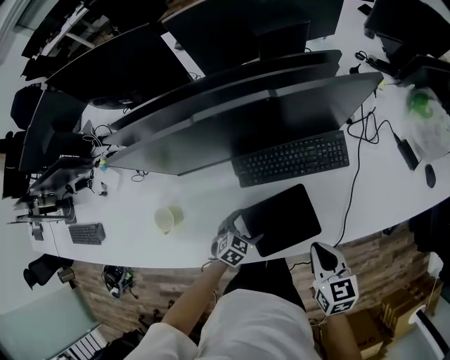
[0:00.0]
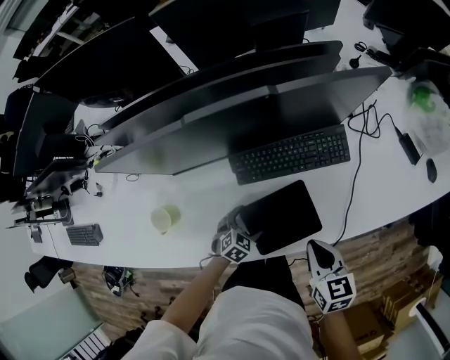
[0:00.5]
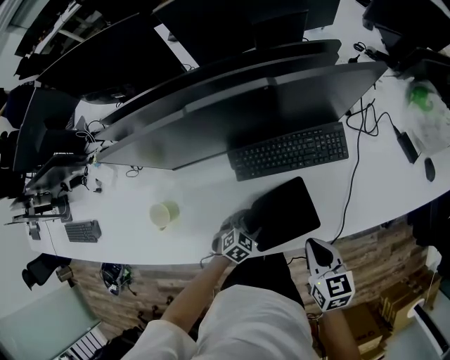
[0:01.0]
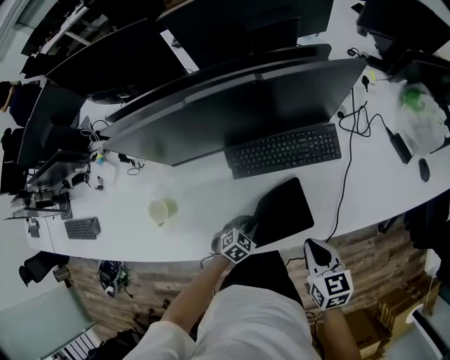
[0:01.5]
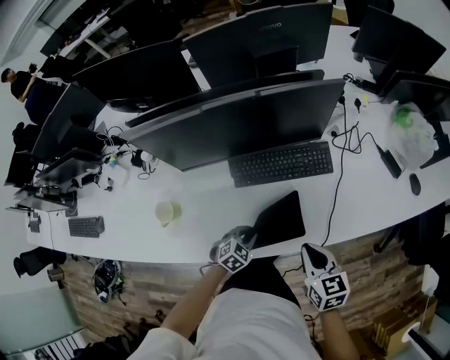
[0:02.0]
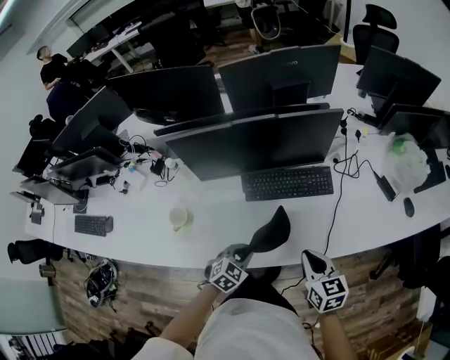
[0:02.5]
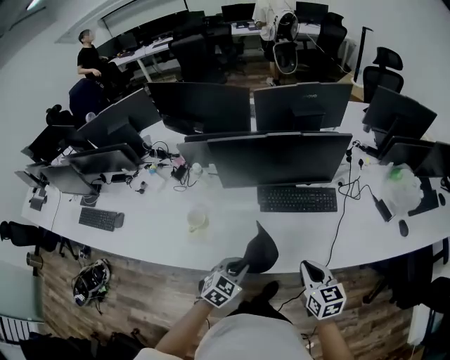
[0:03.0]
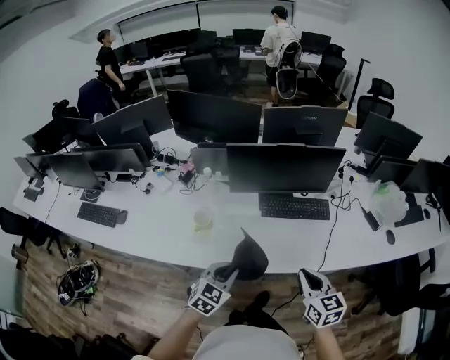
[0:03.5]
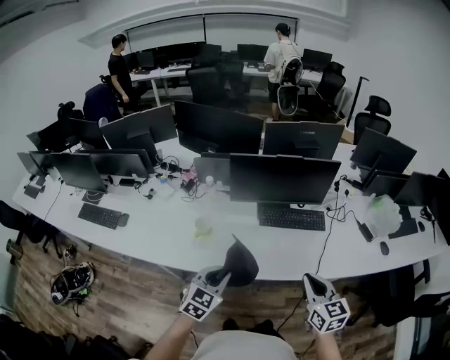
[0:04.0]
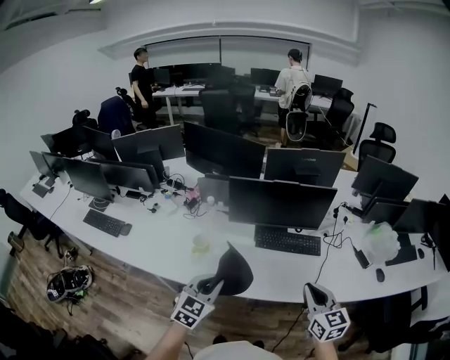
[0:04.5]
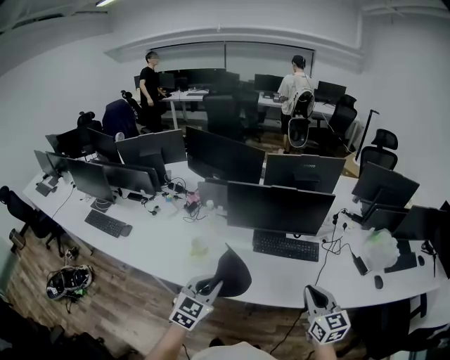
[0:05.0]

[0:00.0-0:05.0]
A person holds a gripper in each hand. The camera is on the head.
0:00.0 to 0:02.5: The right gripper moves upward, roughly 5 cm; the left gripper is displaced upward and backward by roughly 15 cm, and closes.
0:02.5 to 0:05.0: The left gripper travels upward, backward and to the left by roughly 35 cm, and tilts its fingers about 30 degrees upward. Meanwhile the right gripper shifts roughly 25 cm upward and backward, and rotates some 30 degrees.

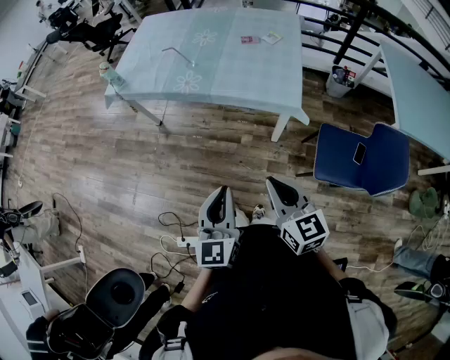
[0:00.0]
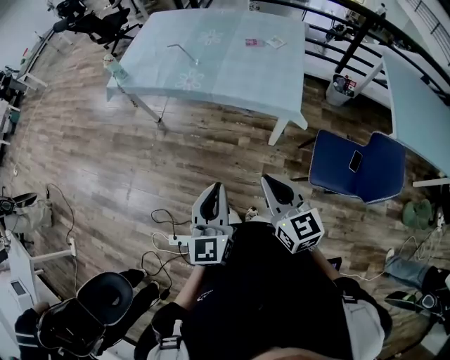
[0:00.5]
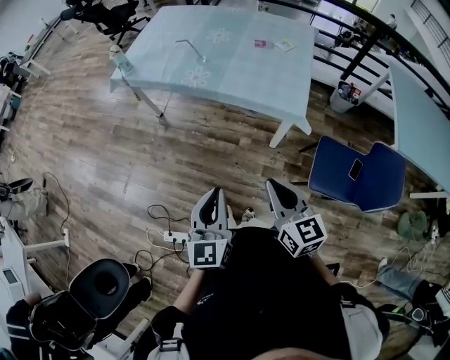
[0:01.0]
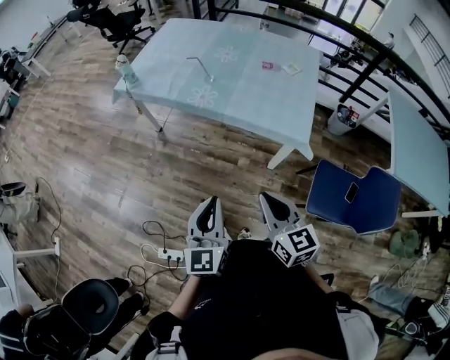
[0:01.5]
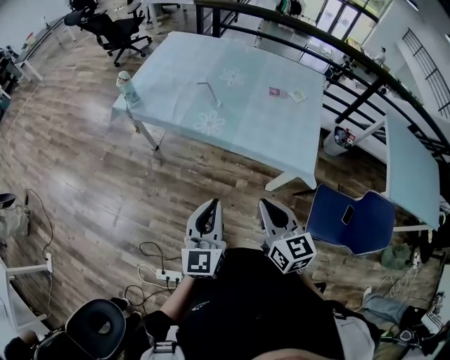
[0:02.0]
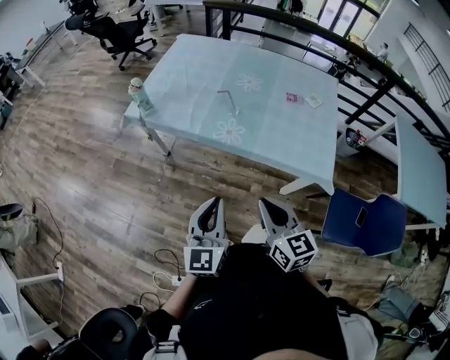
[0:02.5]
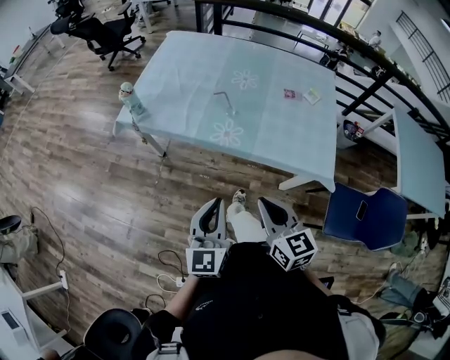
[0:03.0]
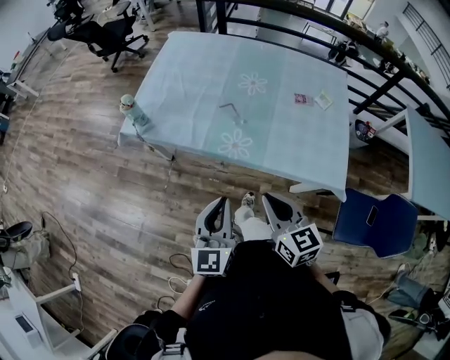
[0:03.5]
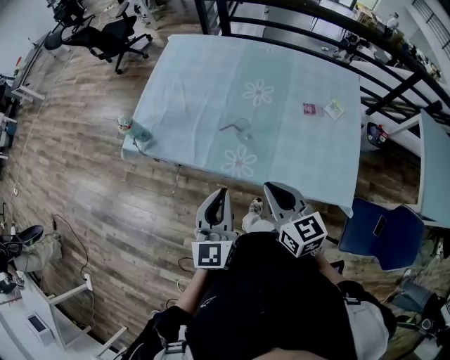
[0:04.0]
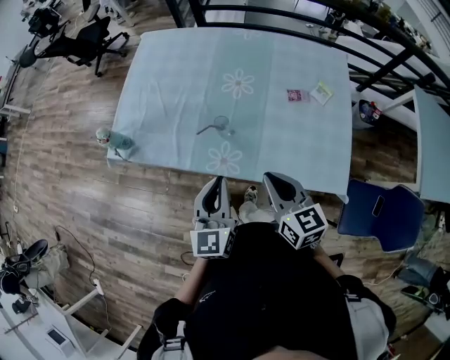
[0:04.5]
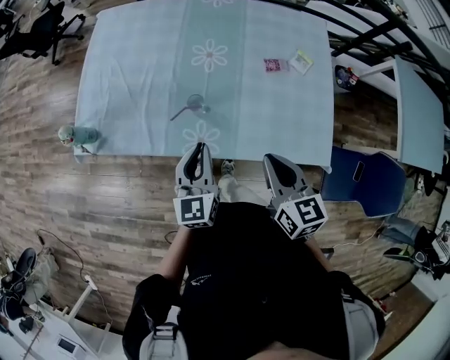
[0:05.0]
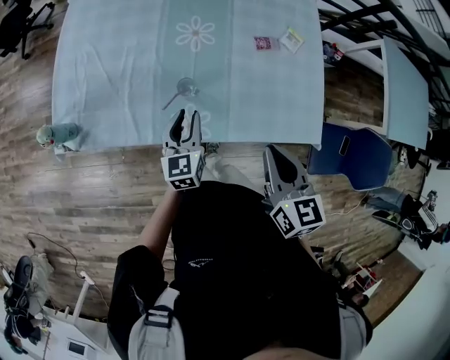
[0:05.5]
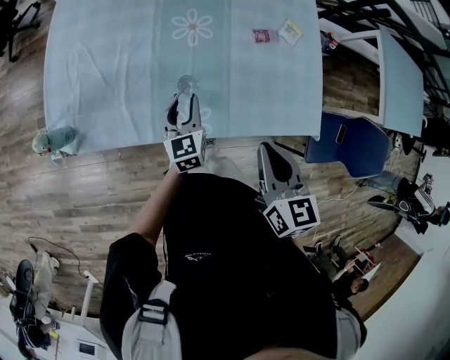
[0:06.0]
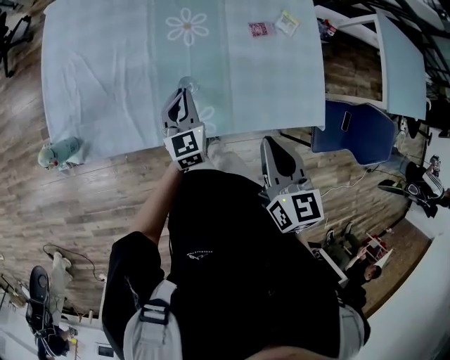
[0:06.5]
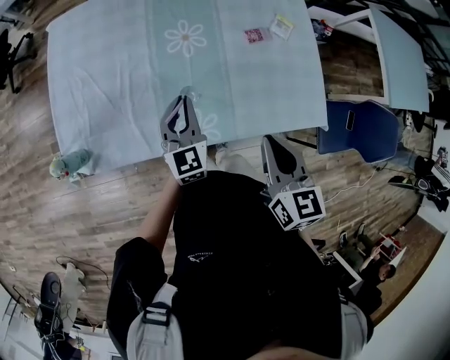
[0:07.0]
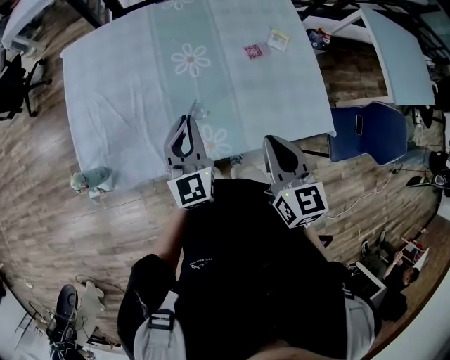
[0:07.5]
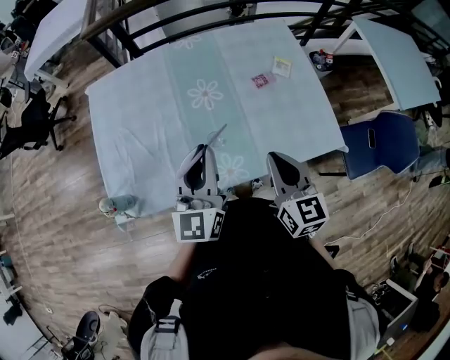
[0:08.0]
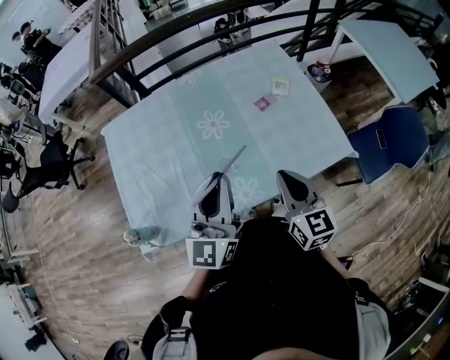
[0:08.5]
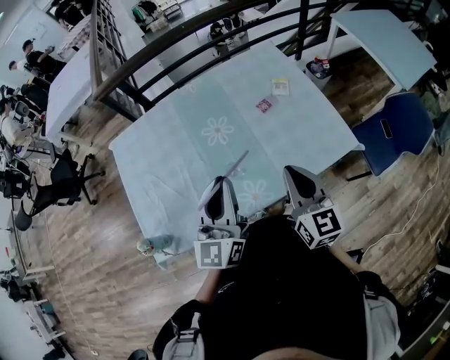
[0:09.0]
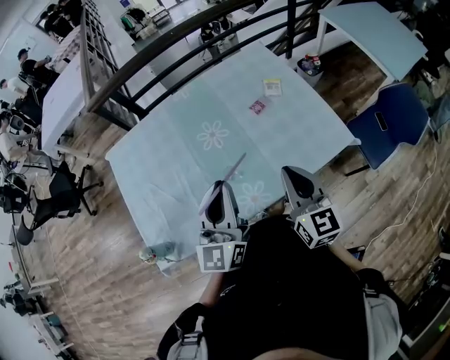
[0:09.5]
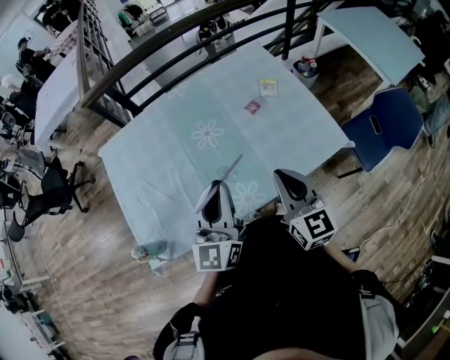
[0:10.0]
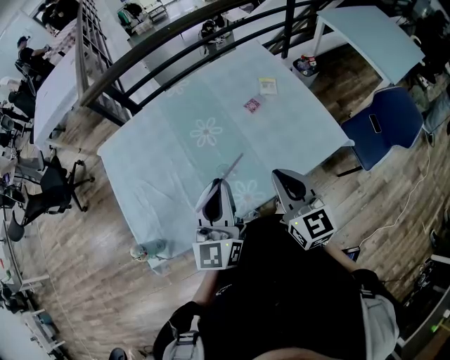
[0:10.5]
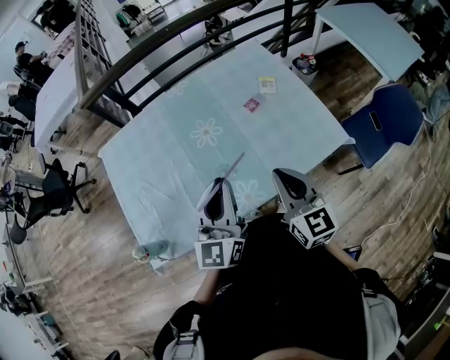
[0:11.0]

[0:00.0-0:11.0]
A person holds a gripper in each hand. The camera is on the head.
0:00.0 to 0:02.0: The two grippers go roughly 20 cm forward and to the left.
0:02.0 to 0:03.5: The left gripper shifts roughly 20 cm forward. The right gripper moves forward and to the left, about 20 cm.
0:03.5 to 0:05.5: The left gripper travels forward and downward by roughly 35 cm, changes its angle by about 20 degrees, and opens its fingers; the right gripper heads forward and to the right, covering about 20 cm, and swivels approximately 30 degrees.
0:05.5 to 0:07.5: The left gripper heads upward, covering about 15 cm, and turns by about 20 degrees; the right gripper moves some 5 cm.
0:07.5 to 0:09.0: The left gripper shifts approximately 10 cm upward, and changes its angle by about 30 degrees.
0:09.0 to 0:11.0: The grippers stay close to where they were, moving slightly.

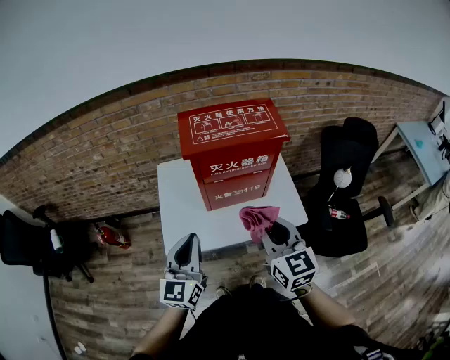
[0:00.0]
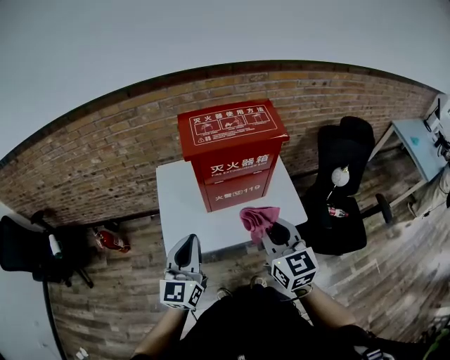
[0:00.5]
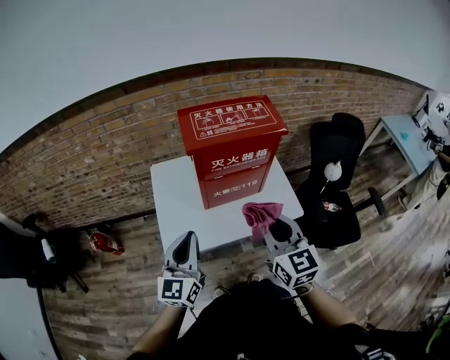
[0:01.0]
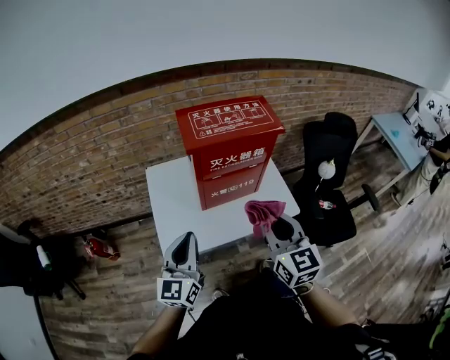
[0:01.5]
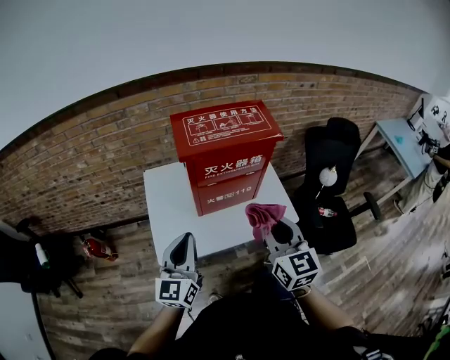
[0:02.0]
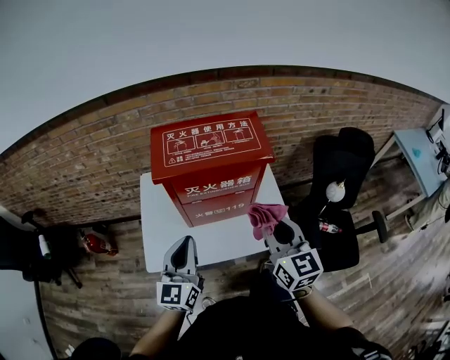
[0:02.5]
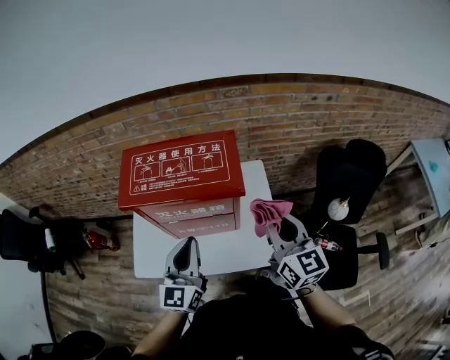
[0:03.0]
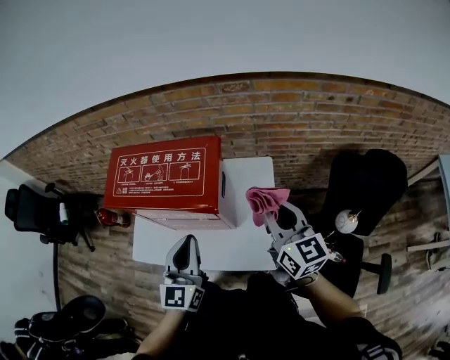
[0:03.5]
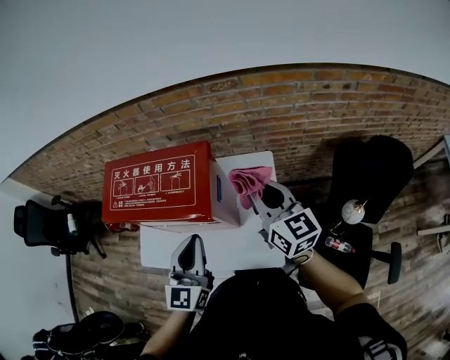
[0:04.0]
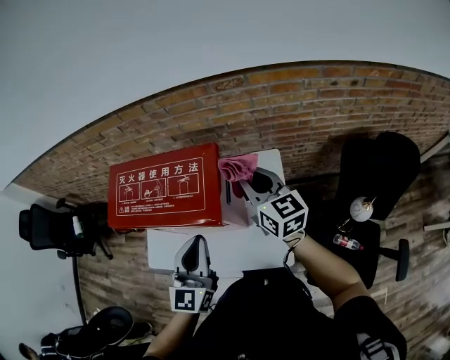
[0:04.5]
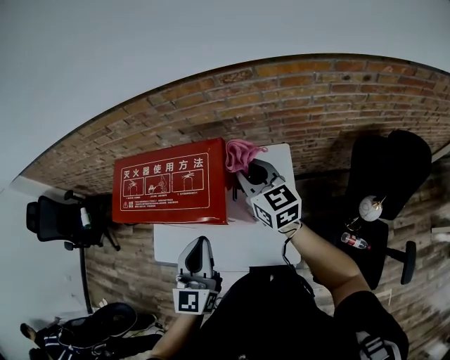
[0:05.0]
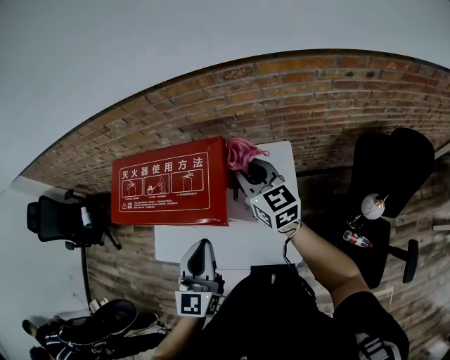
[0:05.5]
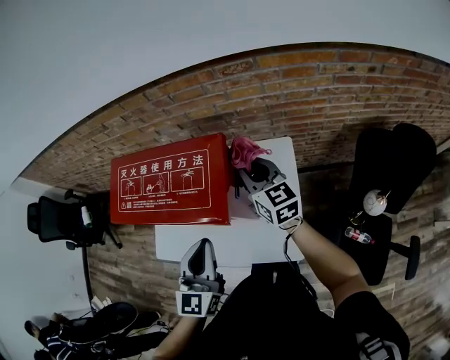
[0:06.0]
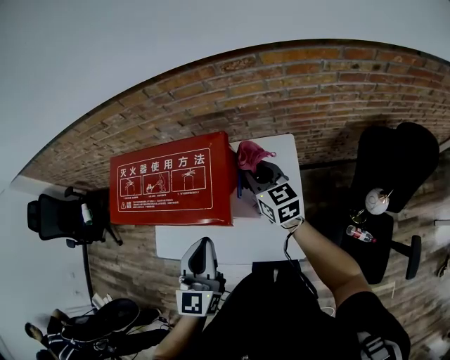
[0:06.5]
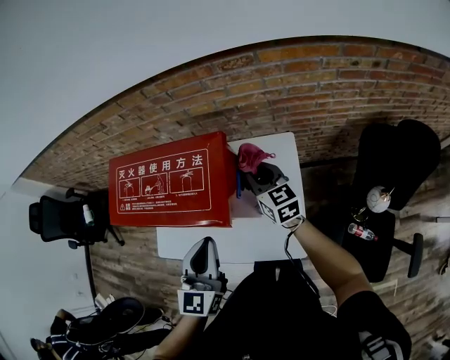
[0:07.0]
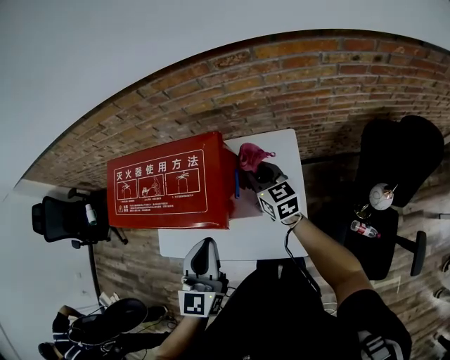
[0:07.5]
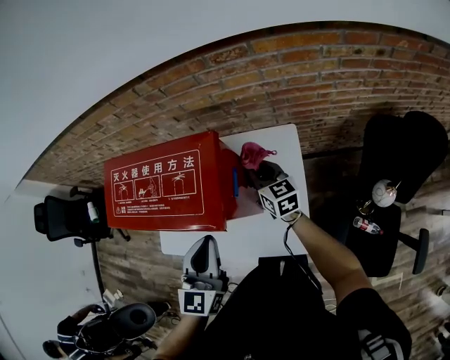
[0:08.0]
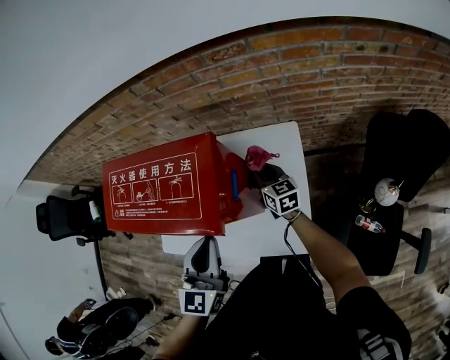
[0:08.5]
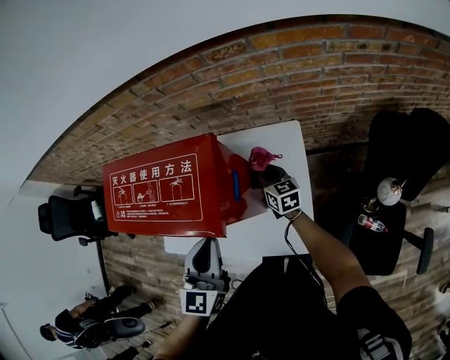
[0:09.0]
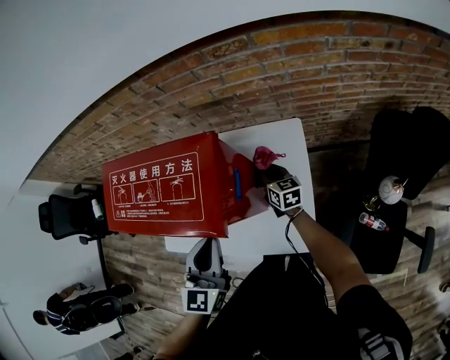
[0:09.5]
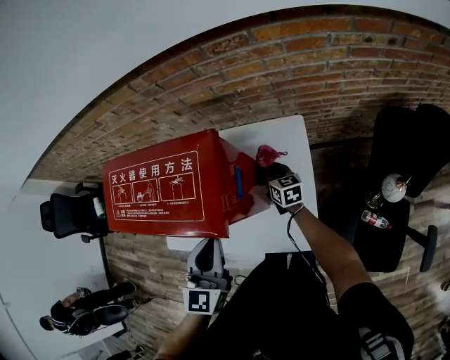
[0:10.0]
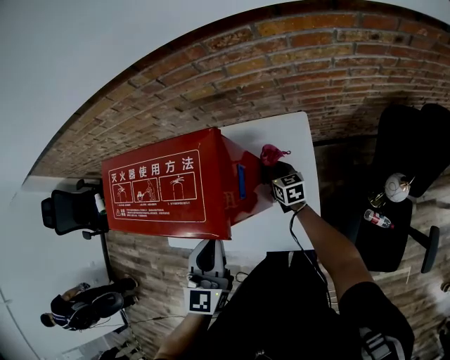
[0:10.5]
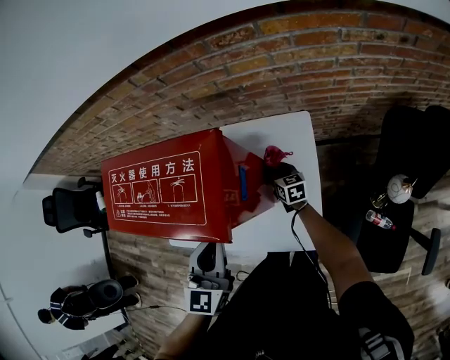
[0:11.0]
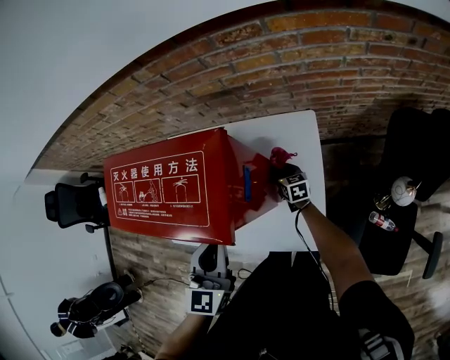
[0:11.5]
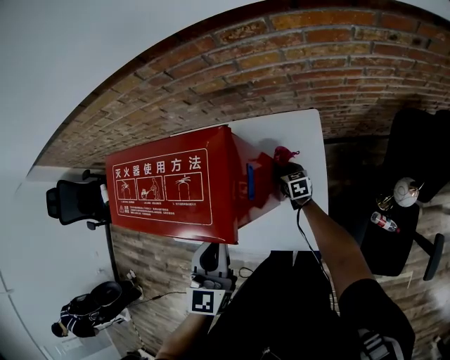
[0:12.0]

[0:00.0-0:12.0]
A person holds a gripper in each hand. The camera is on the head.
0:00.0 to 0:02.0: The grippers make only small movements.
0:02.0 to 0:04.0: The left gripper is displaced to the right and forward by roughly 40 cm, and rotates roughly 20 degrees; the right gripper moves forward and to the right, approximately 40 cm, and rotates about 30 degrees.
0:04.0 to 0:06.0: The right gripper moves forward, downward and to the left, roughly 15 cm.
0:06.0 to 0:08.0: The right gripper is displaced downward by roughly 15 cm.
0:08.0 to 0:10.0: The right gripper is displaced downward by some 15 cm.
0:10.0 to 0:12.0: The right gripper shifts approximately 10 cm downward.
